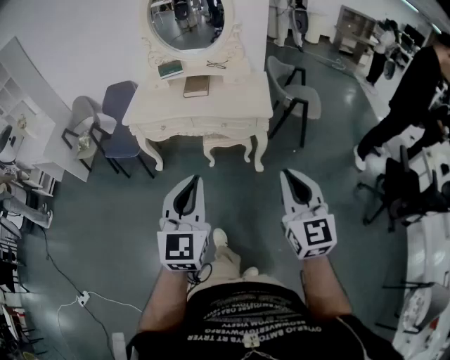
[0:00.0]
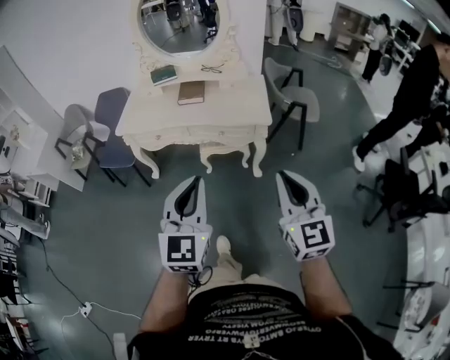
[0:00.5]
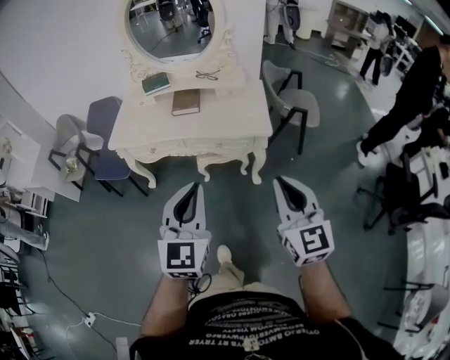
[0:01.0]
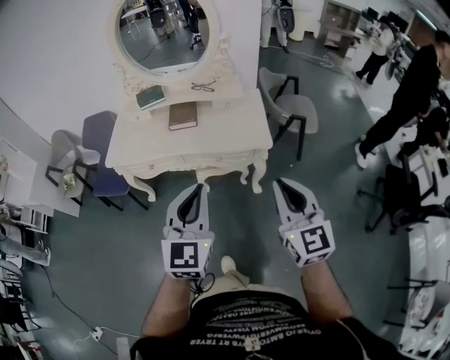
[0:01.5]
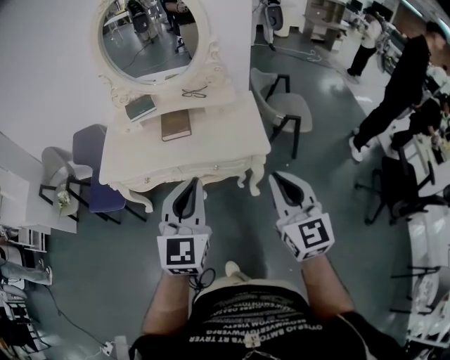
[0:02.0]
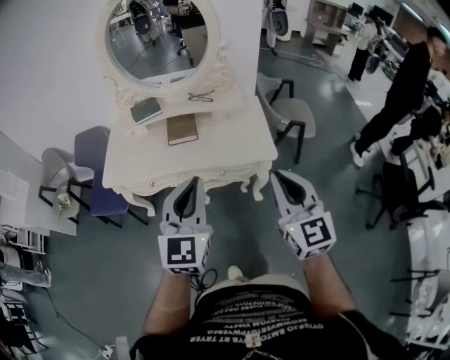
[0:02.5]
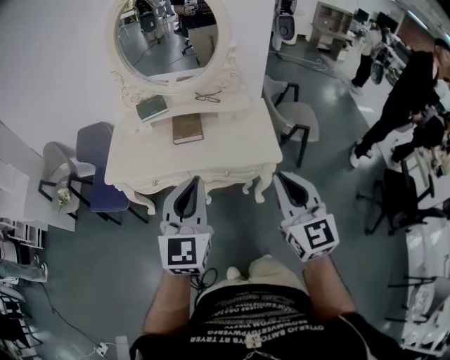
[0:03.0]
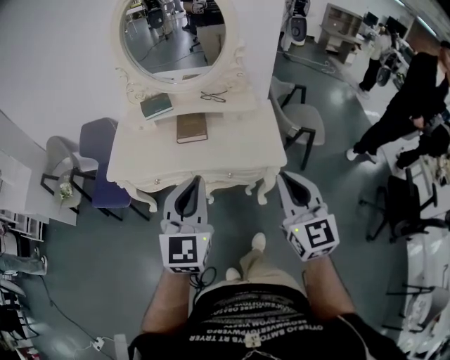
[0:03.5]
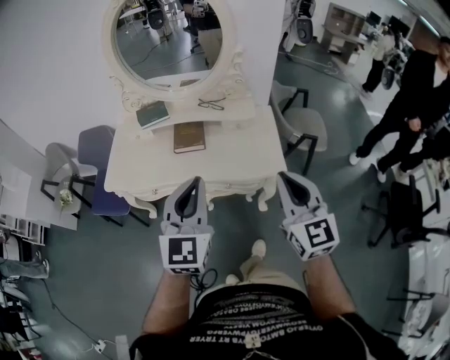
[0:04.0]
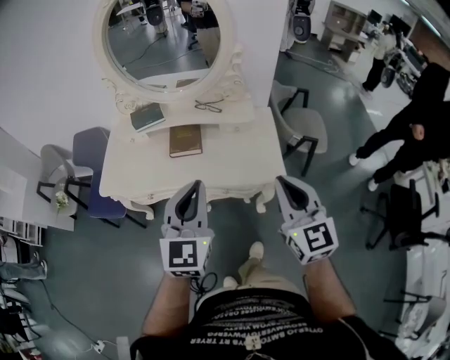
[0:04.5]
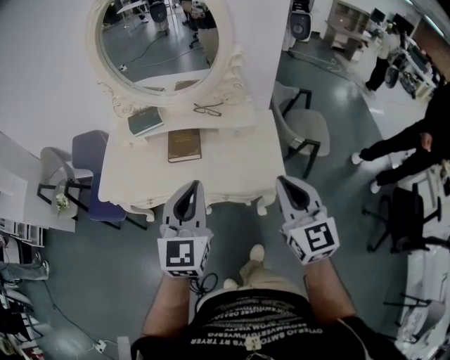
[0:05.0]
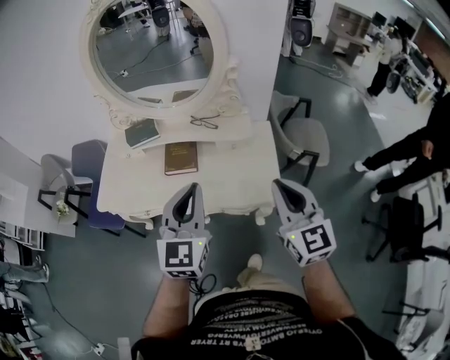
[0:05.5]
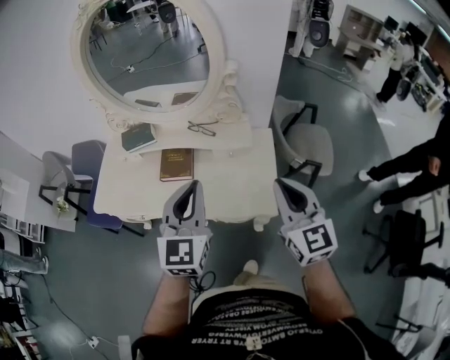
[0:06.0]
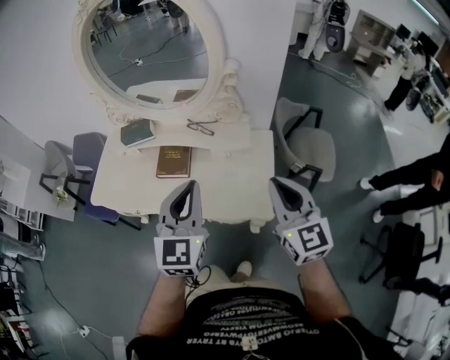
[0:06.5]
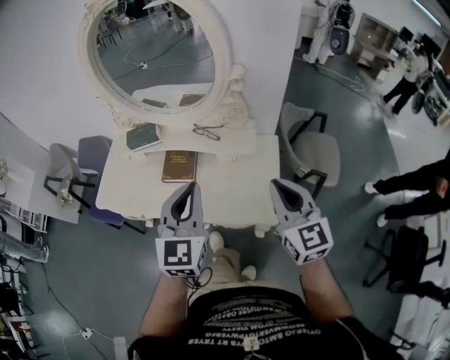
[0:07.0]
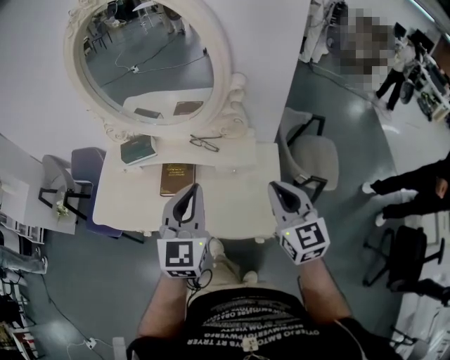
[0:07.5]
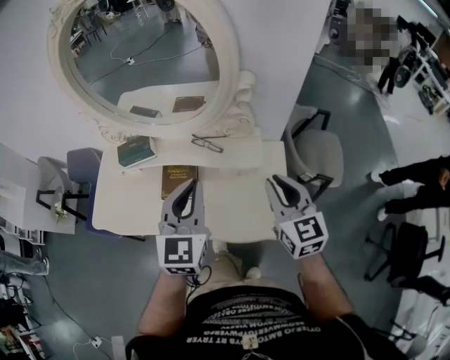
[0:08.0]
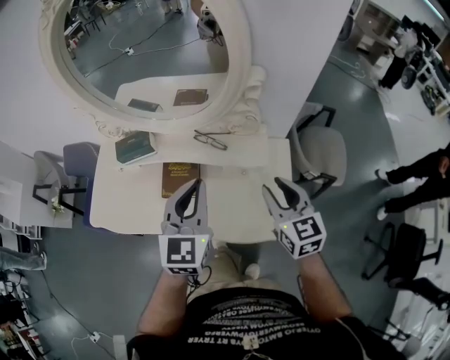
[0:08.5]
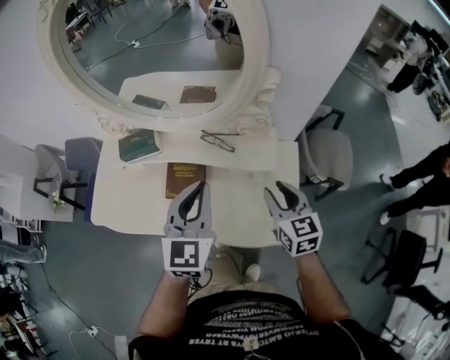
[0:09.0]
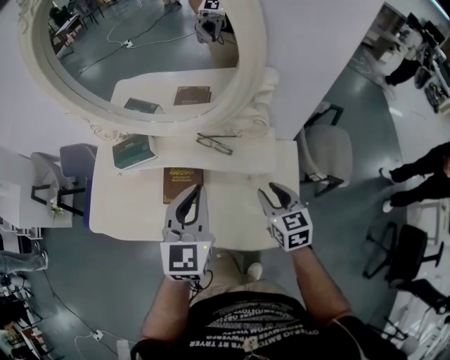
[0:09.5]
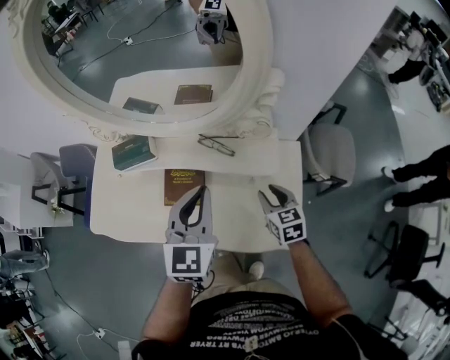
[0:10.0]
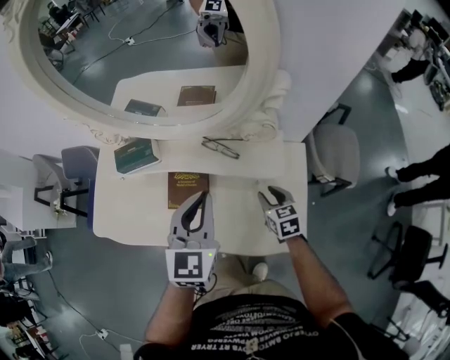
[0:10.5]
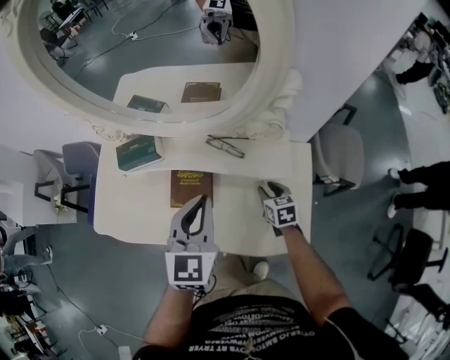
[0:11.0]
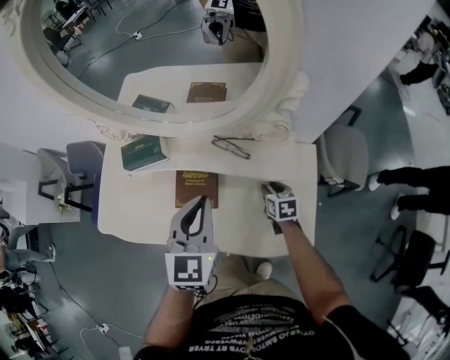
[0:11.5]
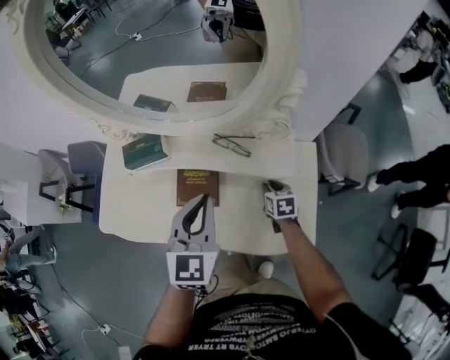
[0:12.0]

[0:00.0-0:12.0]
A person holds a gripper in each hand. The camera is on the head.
0:00.0 to 0:02.0: Both grippers move forward, about 30 cm.
0:02.0 to 0:04.0: Both grippers move forward, approximately 10 cm.
0:04.0 to 0:06.0: The two grippers go roughly 20 cm forward and to the right.
0:06.0 to 0:08.0: The right gripper shifts some 15 cm forward and downward, while the left gripper shifts roughly 15 cm forward.
0:08.0 to 0:10.0: The right gripper shifts some 25 cm downward, rotates some 30 degrees, and opens its fingers; the left gripper is displaced forward and downward by some 10 cm.
0:10.0 to 0:12.0: The right gripper travels downward by about 10 cm.

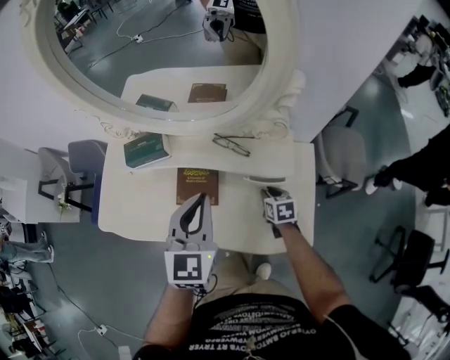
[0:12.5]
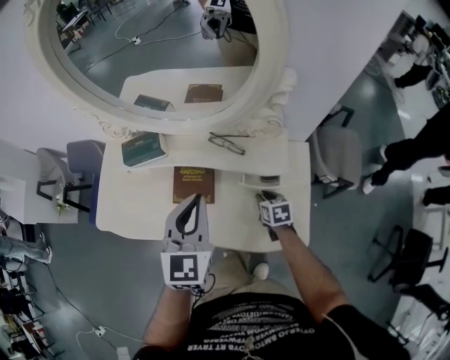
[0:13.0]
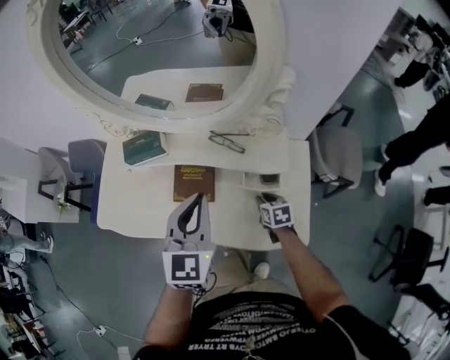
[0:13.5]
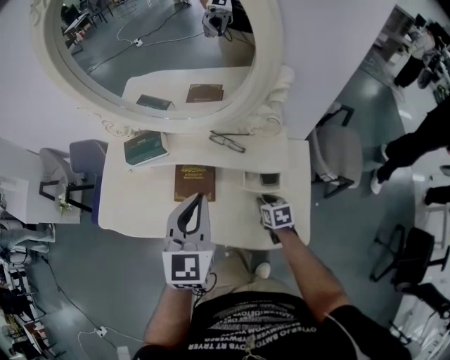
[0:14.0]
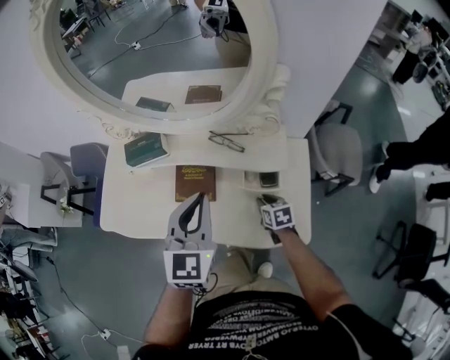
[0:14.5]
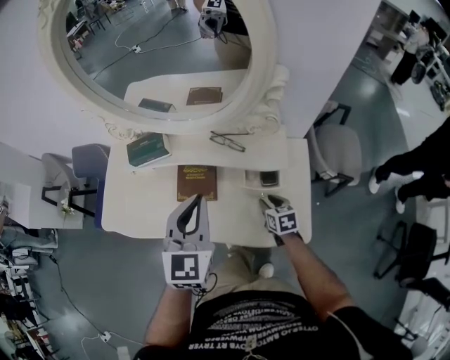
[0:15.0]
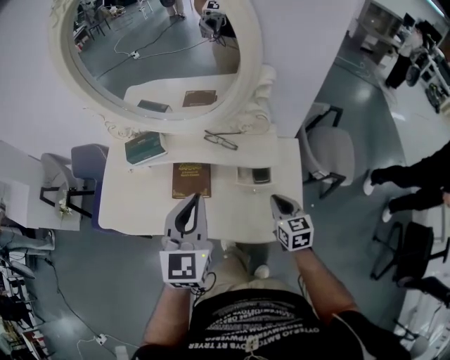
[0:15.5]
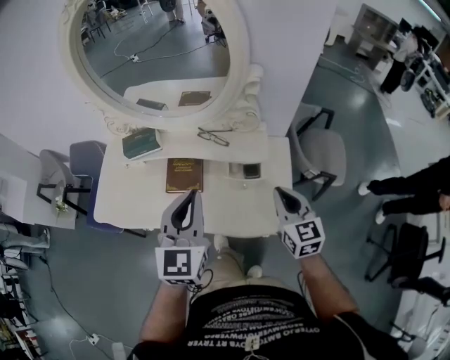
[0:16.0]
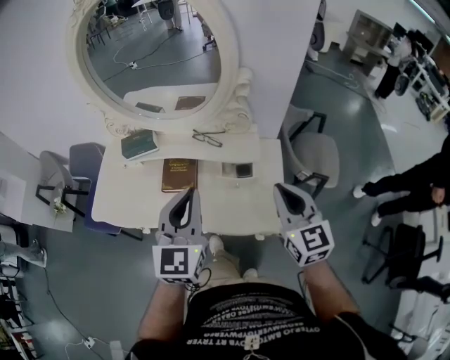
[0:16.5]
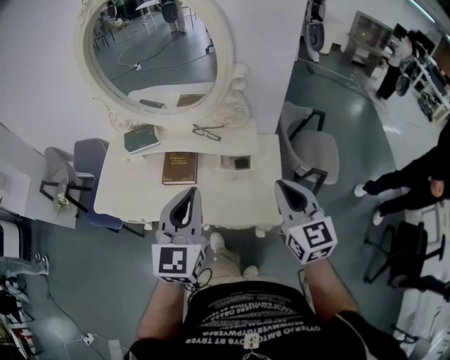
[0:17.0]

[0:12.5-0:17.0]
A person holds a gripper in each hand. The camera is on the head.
0:12.5 to 0:14.5: The right gripper heads backward, covering roughly 5 cm.
0:14.5 to 0:17.0: The right gripper shifts approximately 40 cm upward and backward, and tilts its fingers some 40 degrees upward; the left gripper travels backward and upward by some 15 cm.

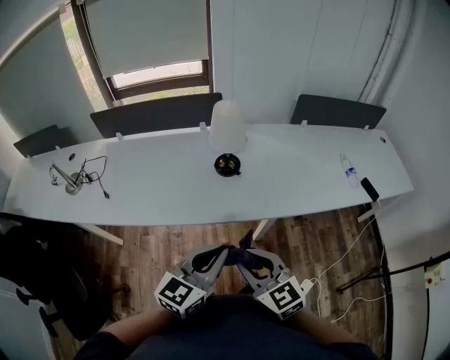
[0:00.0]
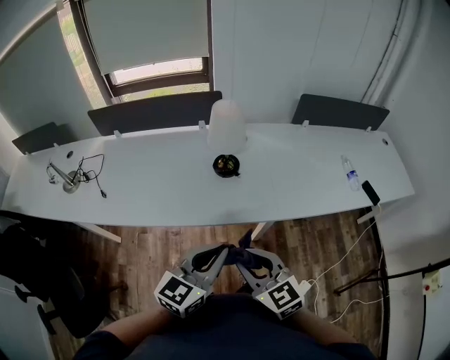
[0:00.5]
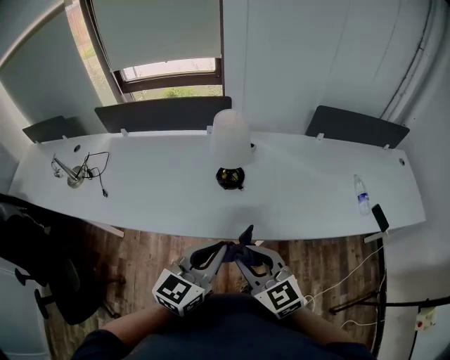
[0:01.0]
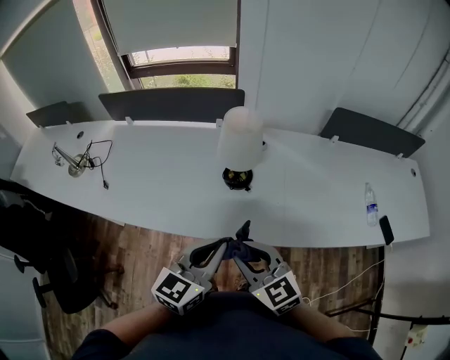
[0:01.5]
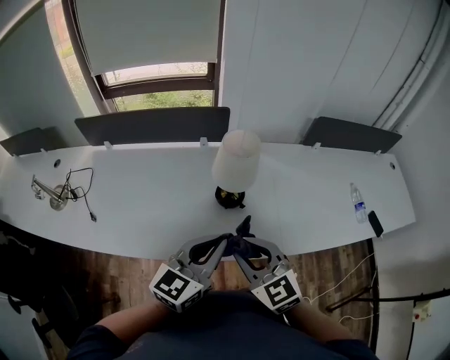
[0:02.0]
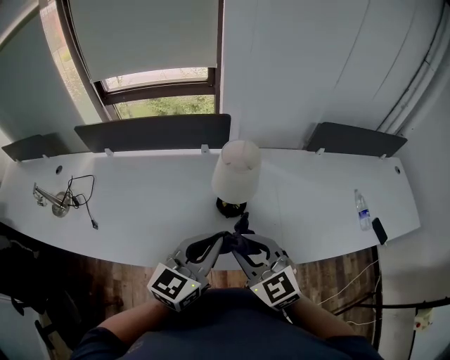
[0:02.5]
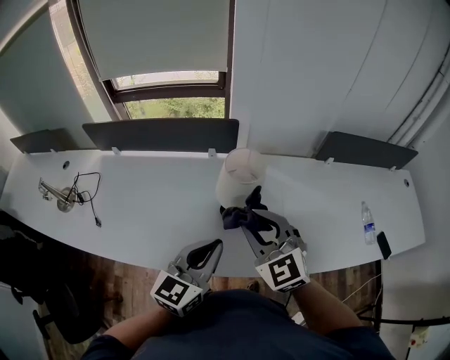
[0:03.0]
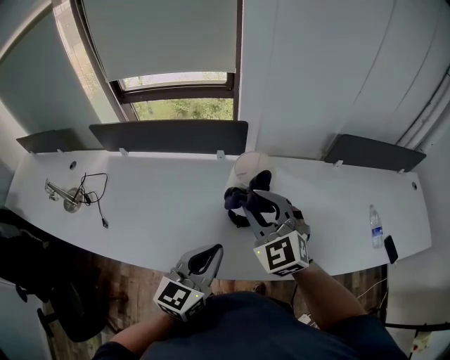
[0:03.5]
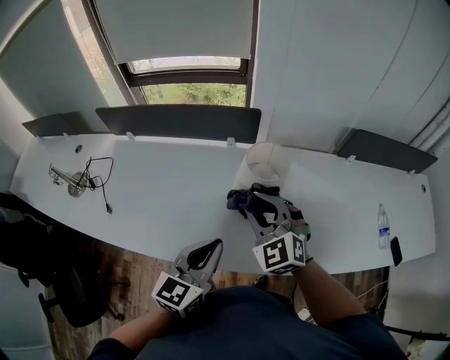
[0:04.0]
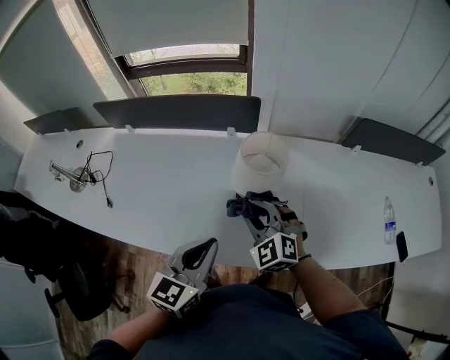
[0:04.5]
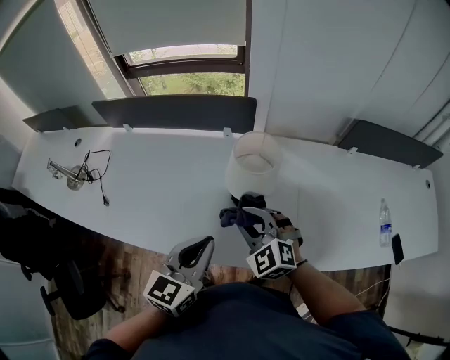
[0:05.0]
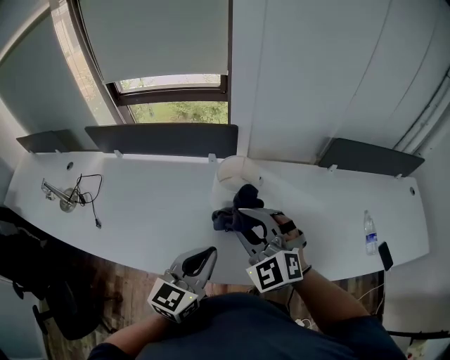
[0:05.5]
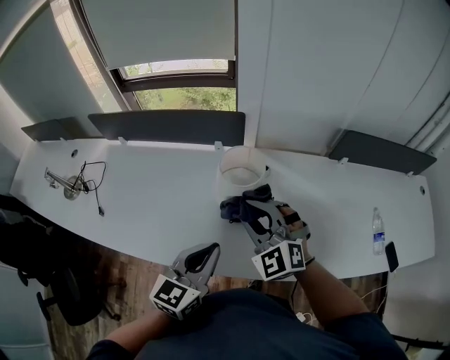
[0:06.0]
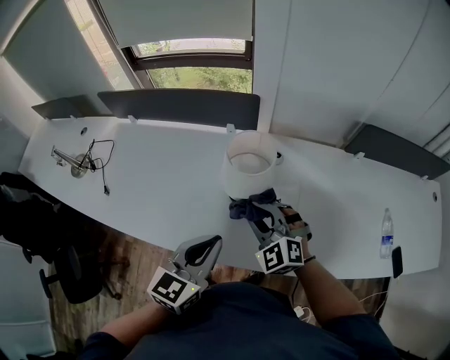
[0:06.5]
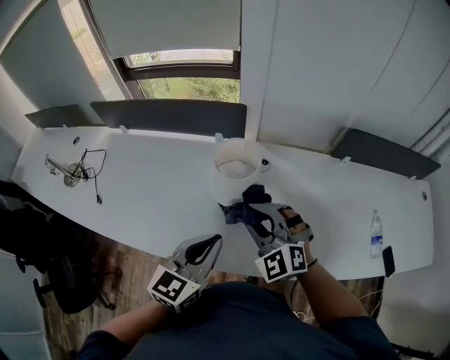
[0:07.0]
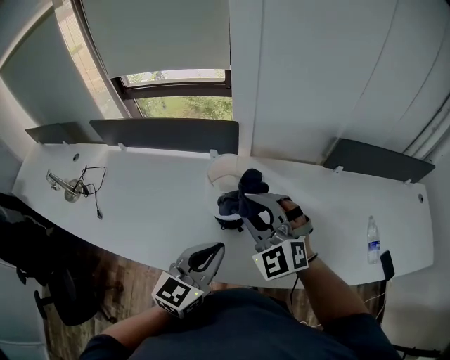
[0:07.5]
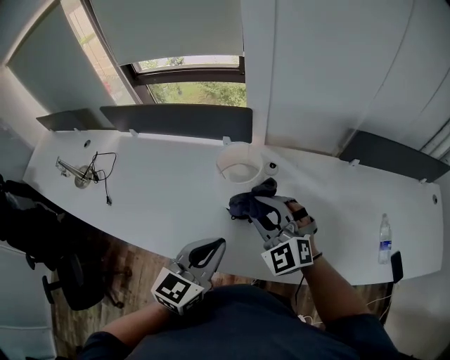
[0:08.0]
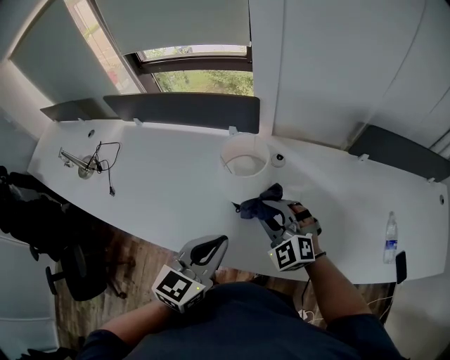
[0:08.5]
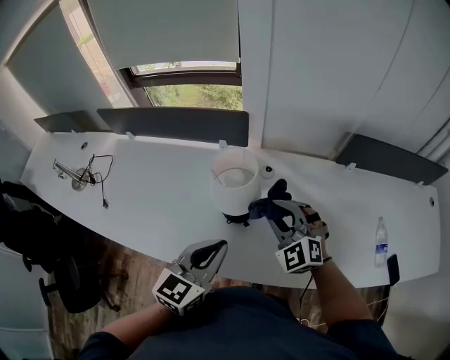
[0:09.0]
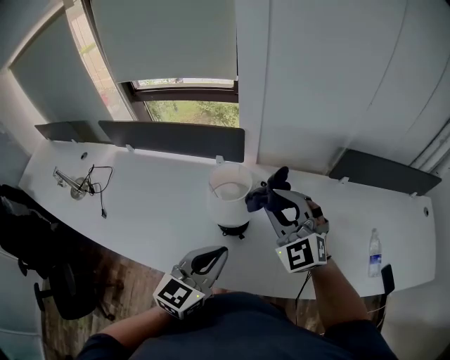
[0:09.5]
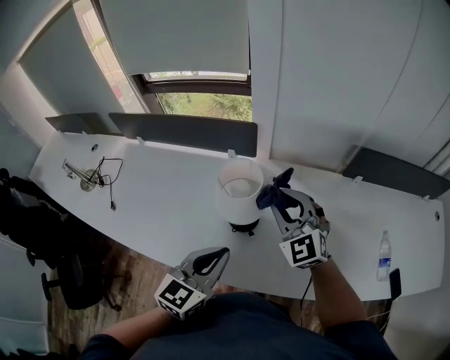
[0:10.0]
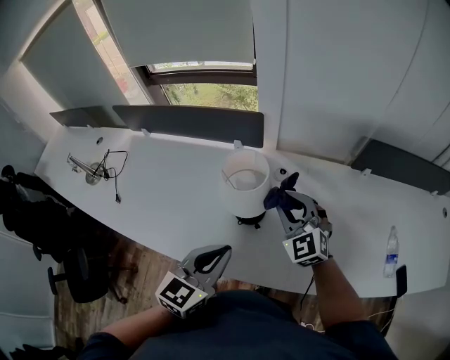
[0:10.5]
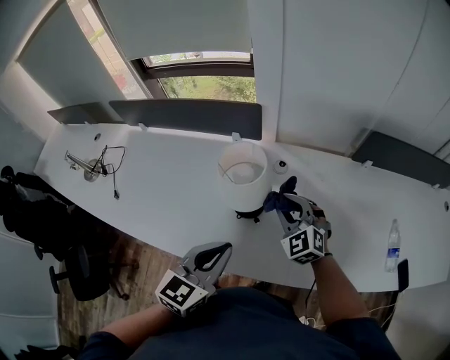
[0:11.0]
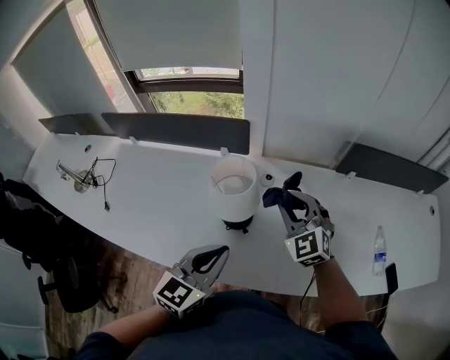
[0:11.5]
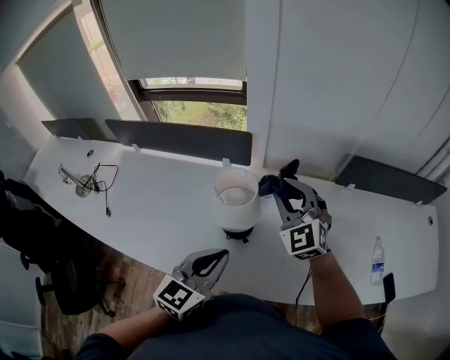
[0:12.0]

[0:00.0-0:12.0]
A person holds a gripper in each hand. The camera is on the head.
0:00.0 to 0:02.0: Both grippers travel together forward, some 20 cm.
0:02.0 to 0:04.0: The right gripper is displaced forward by about 20 cm, and rotates approximately 20 degrees. Meanwhile the left gripper shifts about 5 cm forward.
0:04.0 to 0:06.0: The right gripper moves up and down over approximately 15 cm, changing direction 2 times. The left gripper moves to the right, roughly 5 cm.
0:06.0 to 0:08.0: The right gripper swings up and down, about 15 cm each way, with 2 reversals.
0:08.0 to 0:10.0: The right gripper moves up and down over some 15 cm, changing direction 2 times.
0:10.0 to 0:12.0: The right gripper reaches roughly 10 cm downward, then returns.
